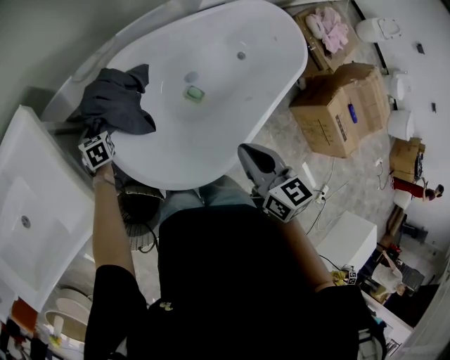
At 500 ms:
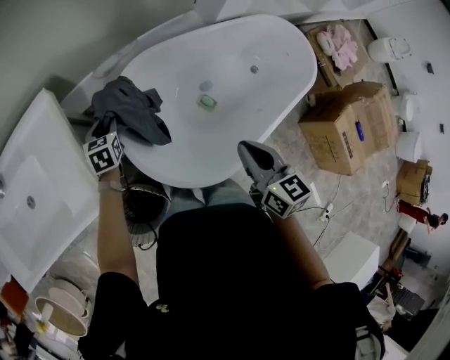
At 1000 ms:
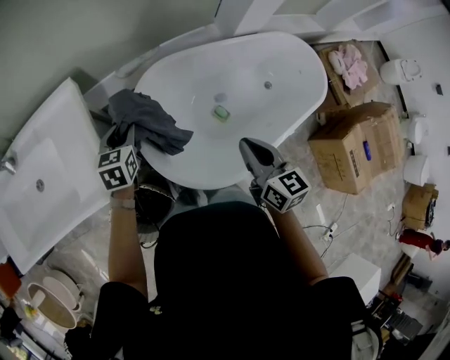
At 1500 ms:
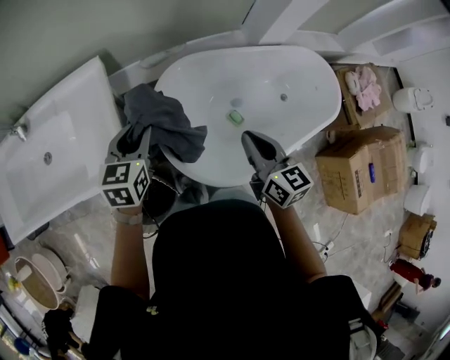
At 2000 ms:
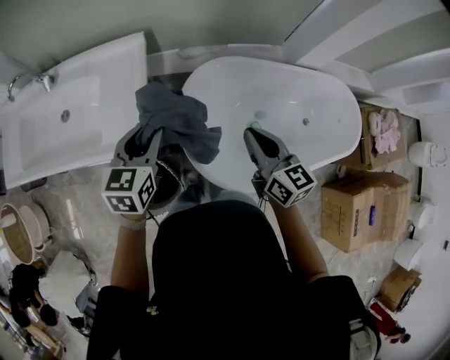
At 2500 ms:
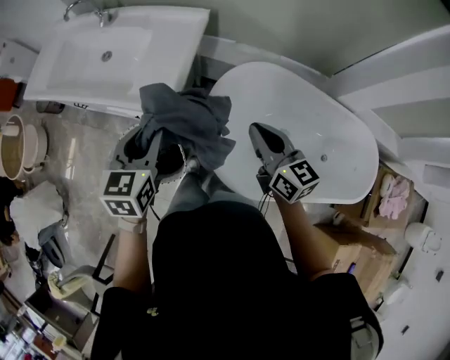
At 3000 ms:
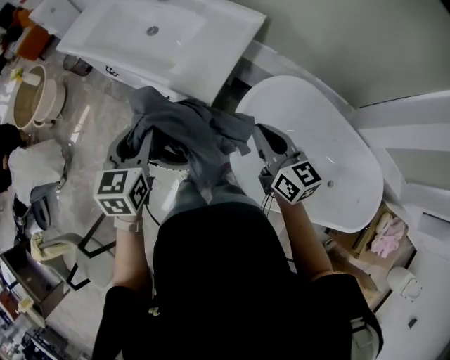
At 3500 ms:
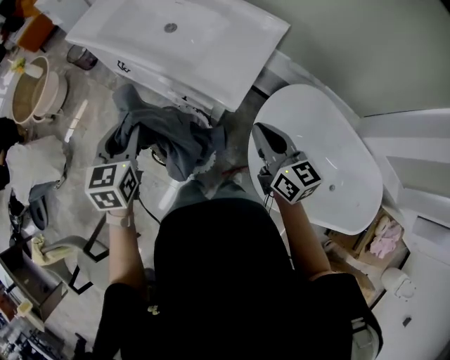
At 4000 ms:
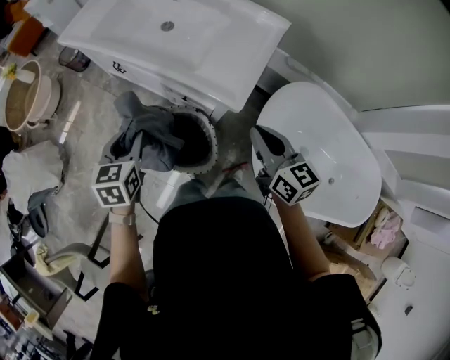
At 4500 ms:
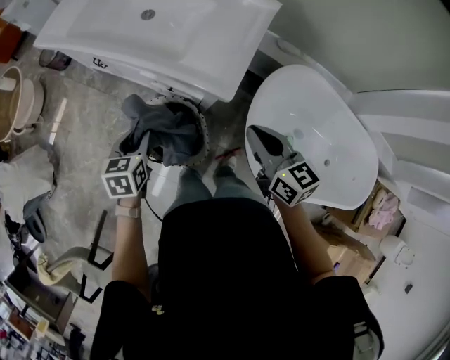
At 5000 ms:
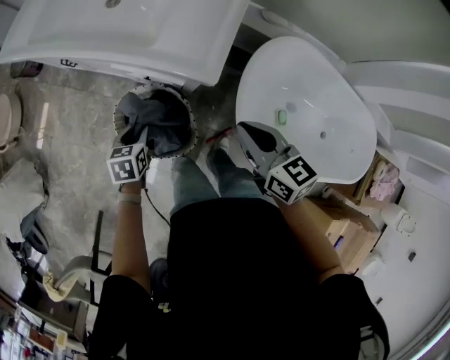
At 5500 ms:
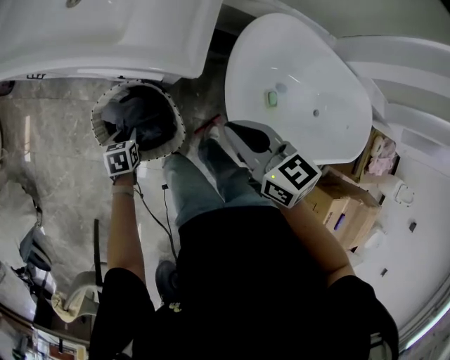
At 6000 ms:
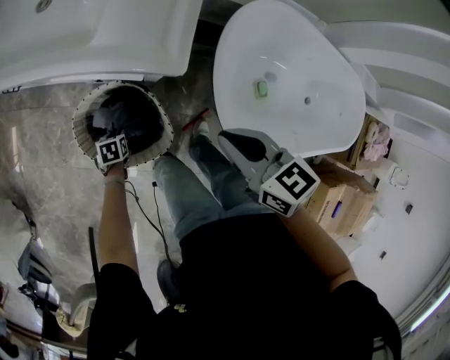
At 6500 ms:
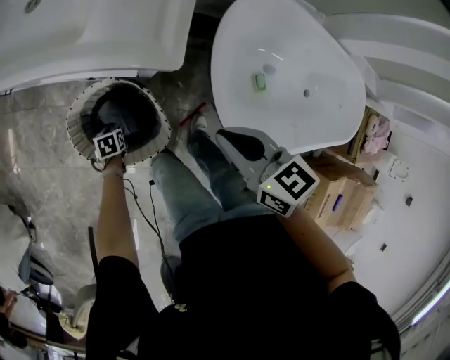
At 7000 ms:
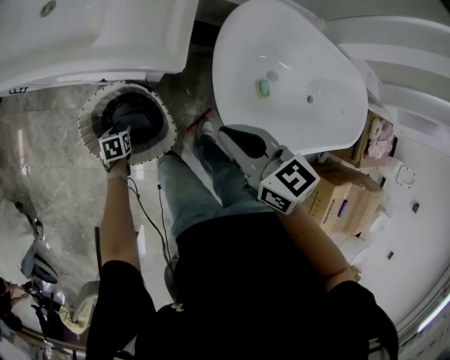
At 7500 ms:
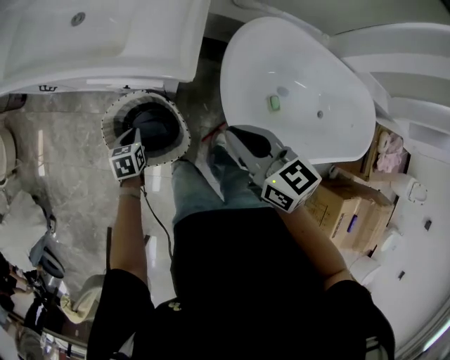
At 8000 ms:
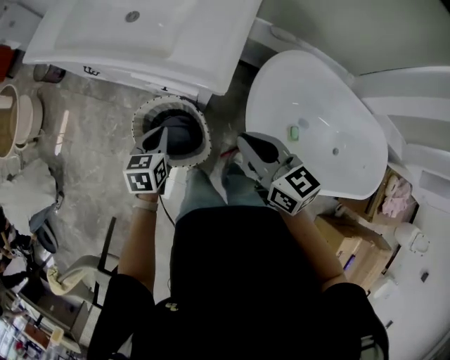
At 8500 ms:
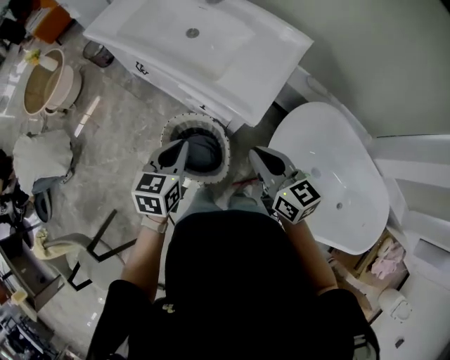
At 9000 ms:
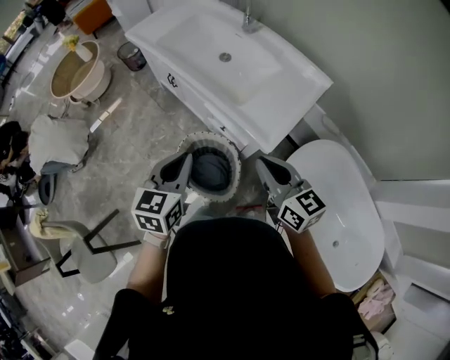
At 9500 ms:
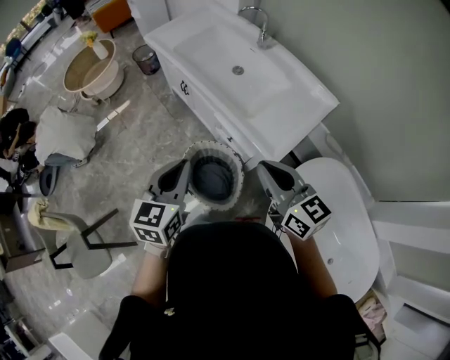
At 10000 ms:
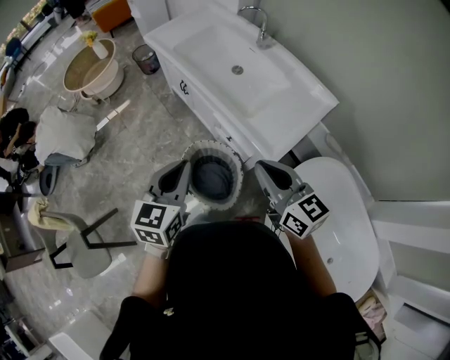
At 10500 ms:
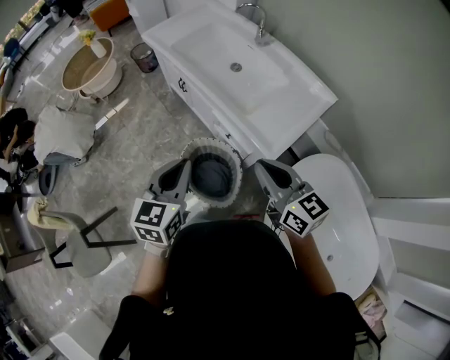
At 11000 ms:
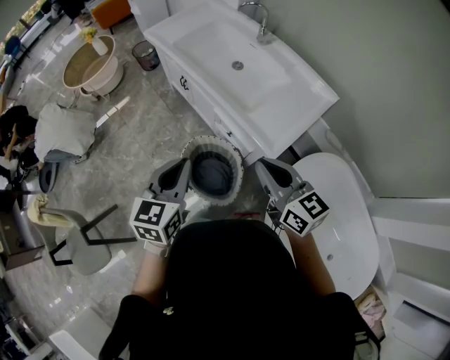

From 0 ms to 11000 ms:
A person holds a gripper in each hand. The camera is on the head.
From 0 ms to 2000 ms: The left gripper moves upward and backward, some 40 cm, and changes its angle by approximately 30 degrees, while the right gripper shifts roughly 15 cm to the left and upward, and turns by roughly 30 degrees.
From 2000 ms to 3500 ms: The left gripper moves approximately 40 cm, and changes its angle by some 40 degrees; the right gripper moves about 30 cm, and changes its angle by some 40 degrees.
From 3500 ms to 5500 ms: The left gripper heads downward, covering approximately 50 cm, and tips its fingers downward by roughly 30 degrees. Meanwhile the right gripper goes about 15 cm downward.
From 5500 ms to 7500 ms: The left gripper reaches roughly 15 cm downward, then returns, and opens, then closes once more. Meanwhile the right gripper goes some 5 cm upward.
From 7500 ms to 9000 ms: The right gripper shifts about 15 cm upward, and changes its angle by about 30 degrees. Meanwhile the left gripper is displaced upward by about 40 cm, and angles its fingers upward, by some 30 degrees.
From 9000 ms to 11000 ms: The left gripper shifts by about 5 cm. Meanwhile the right gripper moves about 5 cm.

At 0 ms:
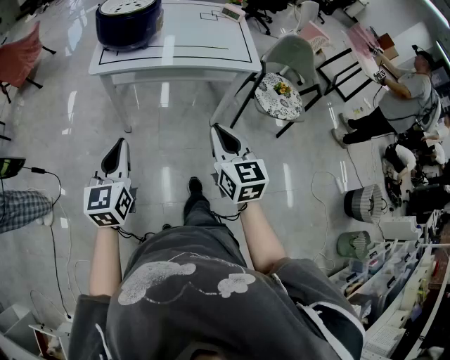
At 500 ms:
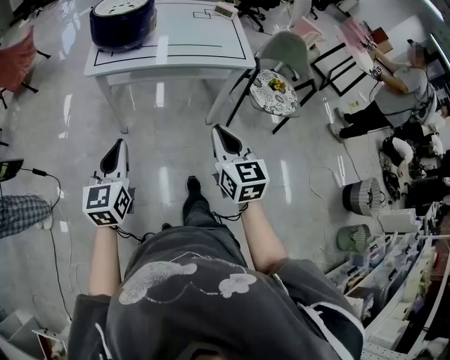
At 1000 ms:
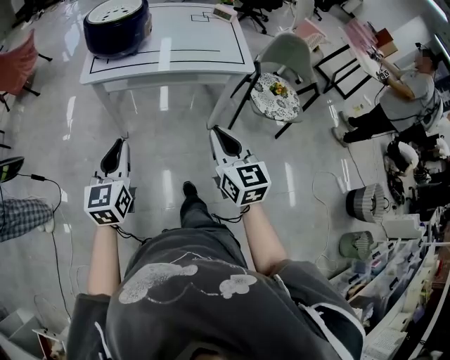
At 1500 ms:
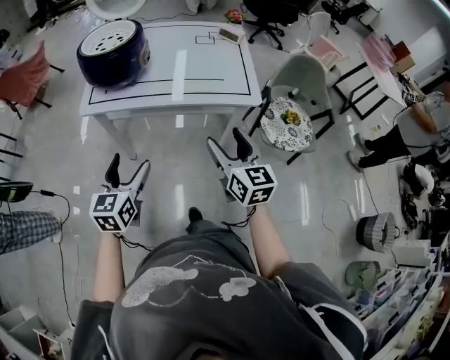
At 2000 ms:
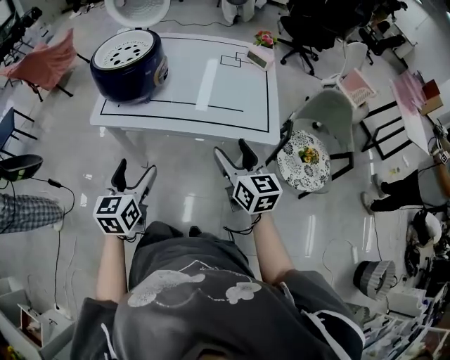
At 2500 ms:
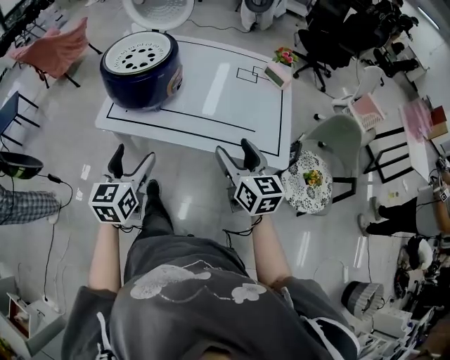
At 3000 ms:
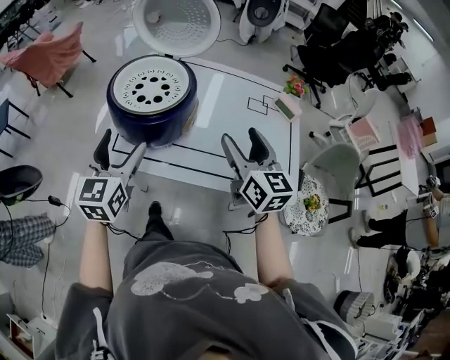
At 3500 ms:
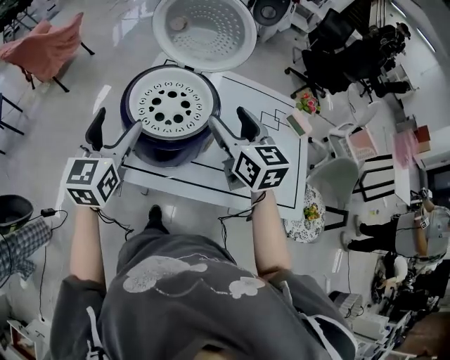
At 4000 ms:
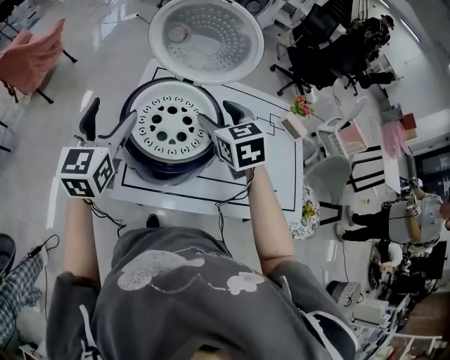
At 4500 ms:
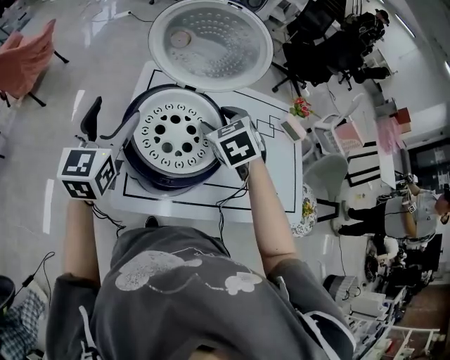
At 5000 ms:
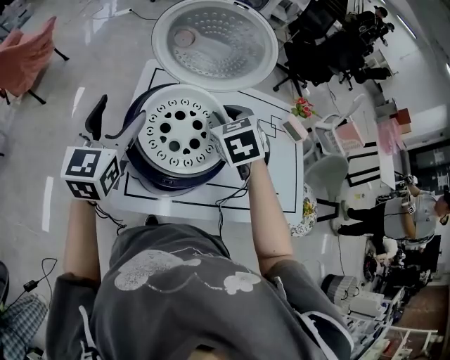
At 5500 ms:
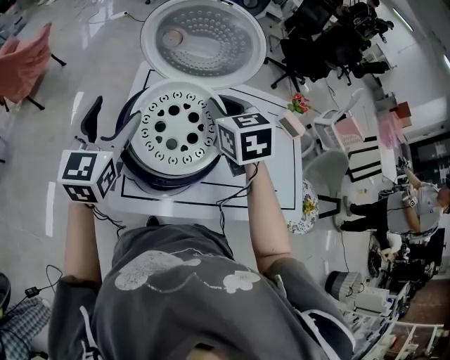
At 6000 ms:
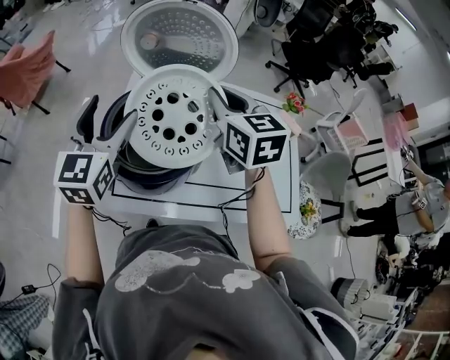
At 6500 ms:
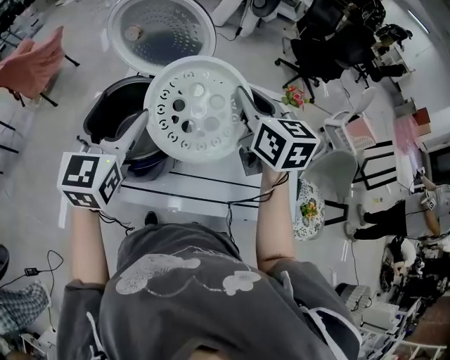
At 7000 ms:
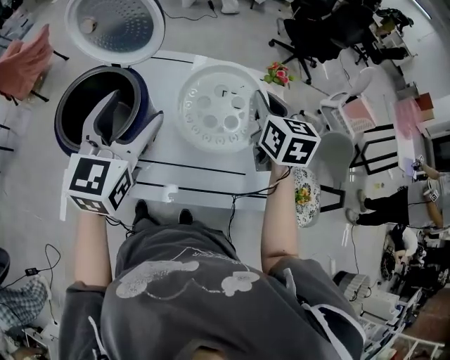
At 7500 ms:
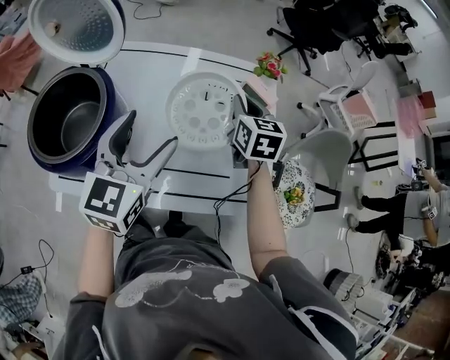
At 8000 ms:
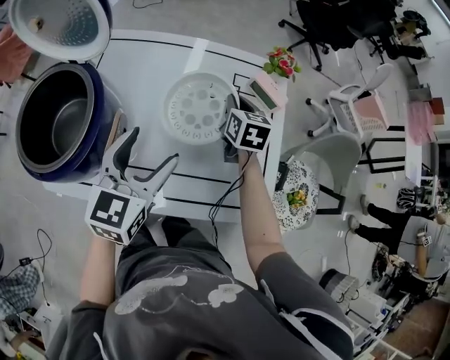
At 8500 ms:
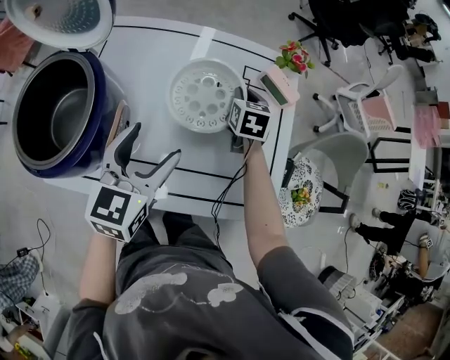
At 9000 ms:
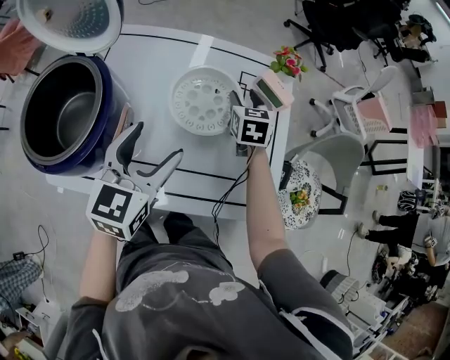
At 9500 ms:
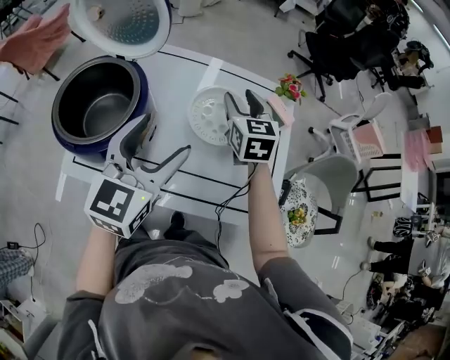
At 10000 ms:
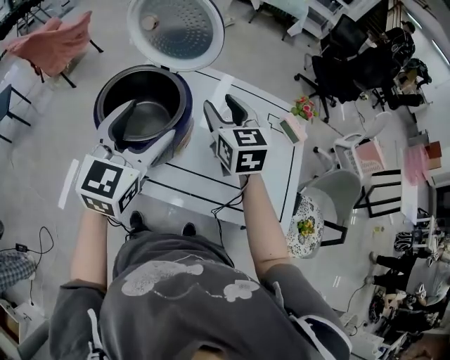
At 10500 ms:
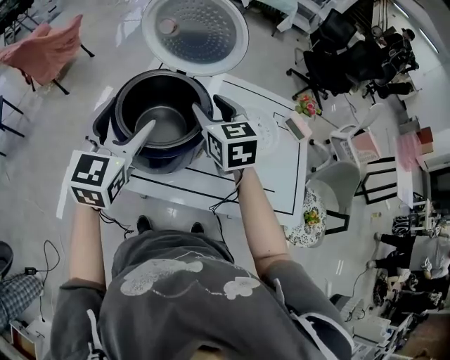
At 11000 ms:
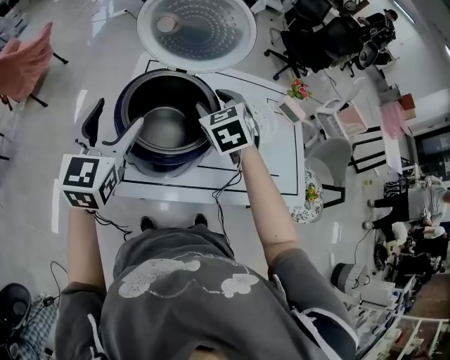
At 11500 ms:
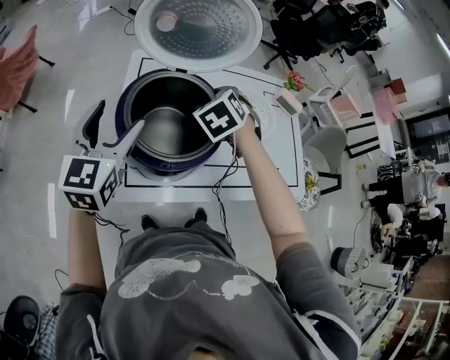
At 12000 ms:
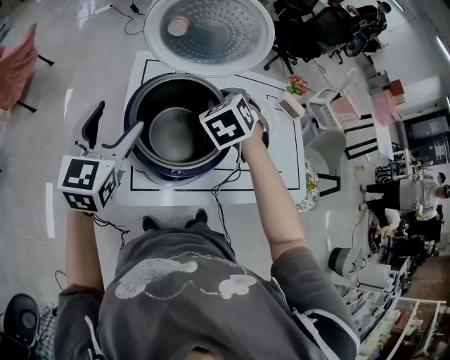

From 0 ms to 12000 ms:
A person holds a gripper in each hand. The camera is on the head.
From 0 ms to 2000 ms: The two grippers go roughly 25 cm forward and to the right. The right gripper opens its fingers; the left gripper opens.
From 2000 ms to 4000 ms: The two grippers travel together, forward and to the left, about 50 cm. The right gripper turns by approximately 30 degrees.
From 4000 ms to 6000 ms: The left gripper travels to the right by roughly 5 cm. Meanwhile the right gripper is displaced upward by some 10 cm, and closes.
From 6000 ms to 8000 ms: The left gripper heads to the right, covering approximately 35 cm, and rotates about 20 degrees, while the right gripper is displaced to the right and downward by some 40 cm, and rotates about 30 degrees.
From 8000 ms to 10000 ms: The left gripper shifts about 20 cm to the left and upward. Meanwhile the right gripper travels to the left, upward and backward by roughly 35 cm, rotates some 30 degrees, and opens up.
From 10000 ms to 12000 ms: The right gripper moves to the left and downward, some 10 cm, and points its fingers approximately 30 degrees further downward. The left gripper goes about 20 cm to the left.

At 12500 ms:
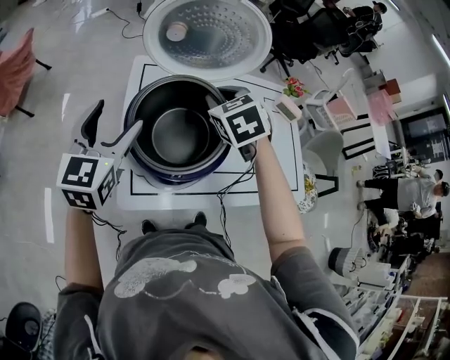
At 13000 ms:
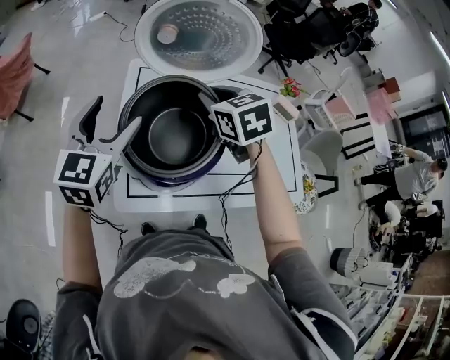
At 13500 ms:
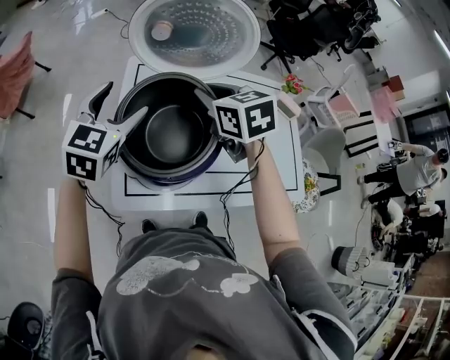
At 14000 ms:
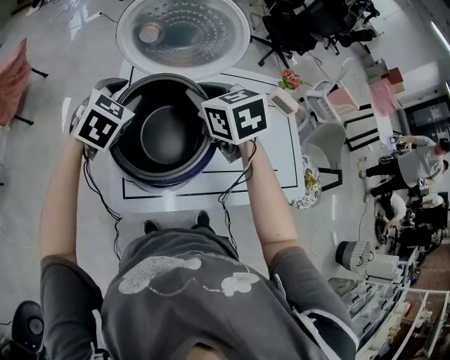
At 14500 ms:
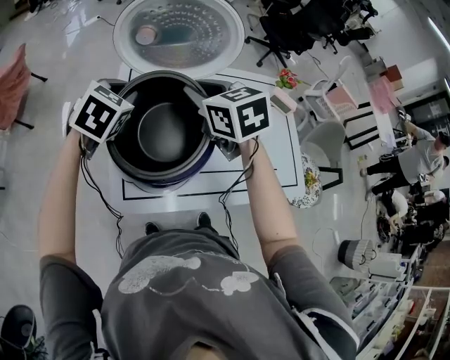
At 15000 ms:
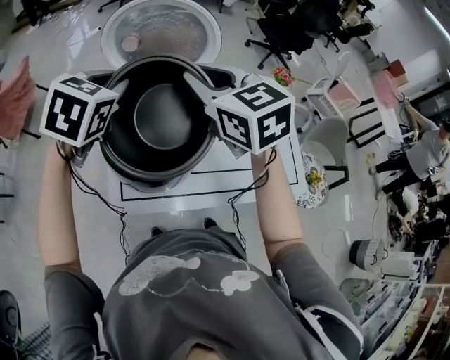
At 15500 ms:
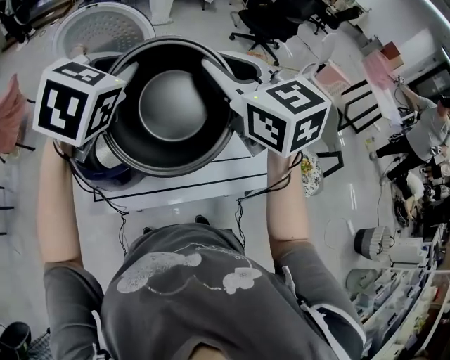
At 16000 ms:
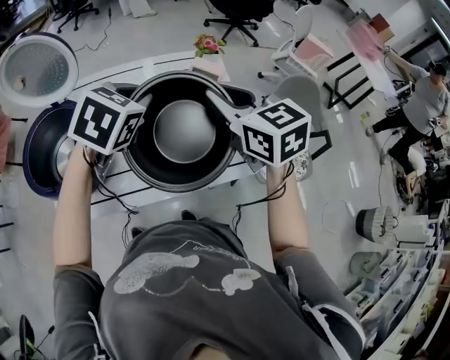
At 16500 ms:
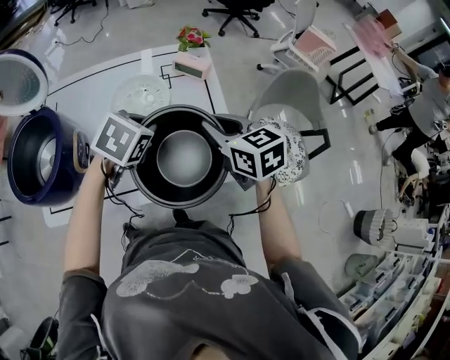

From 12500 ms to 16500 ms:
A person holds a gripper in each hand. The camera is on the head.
From 12500 ms to 14500 ms: The left gripper travels forward and to the right by approximately 10 cm, tips its fingers downward by approximately 30 degrees, and closes; the right gripper changes its angle by about 20 degrees.
From 14500 ms to 16500 ms: The two grippers travel together, to the right, about 50 cm.
